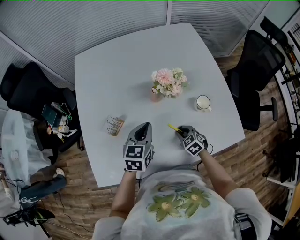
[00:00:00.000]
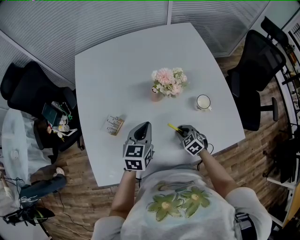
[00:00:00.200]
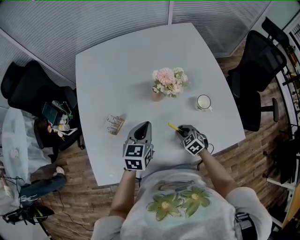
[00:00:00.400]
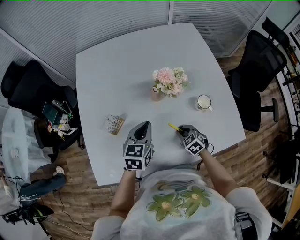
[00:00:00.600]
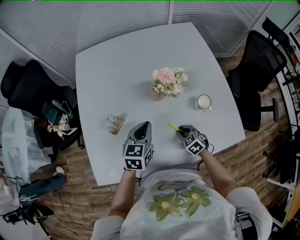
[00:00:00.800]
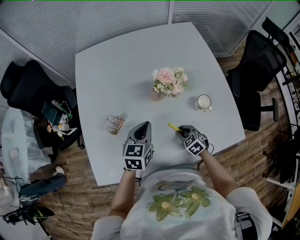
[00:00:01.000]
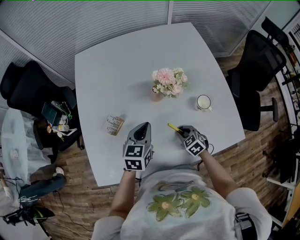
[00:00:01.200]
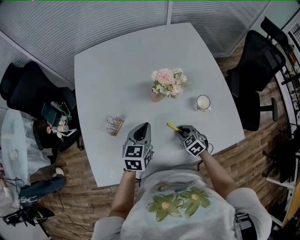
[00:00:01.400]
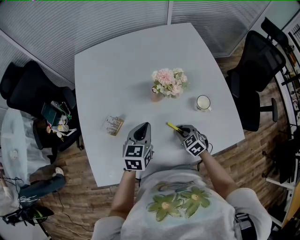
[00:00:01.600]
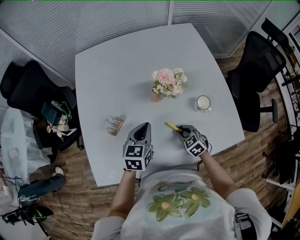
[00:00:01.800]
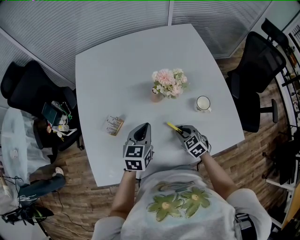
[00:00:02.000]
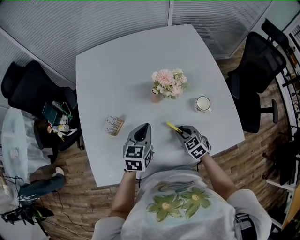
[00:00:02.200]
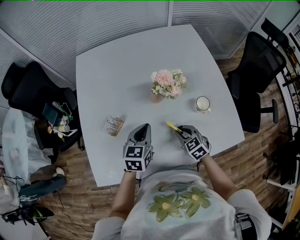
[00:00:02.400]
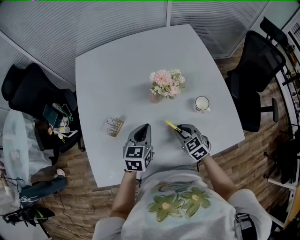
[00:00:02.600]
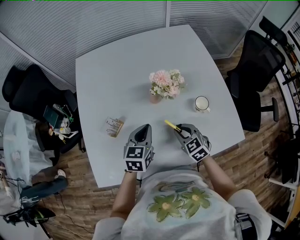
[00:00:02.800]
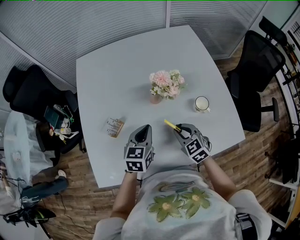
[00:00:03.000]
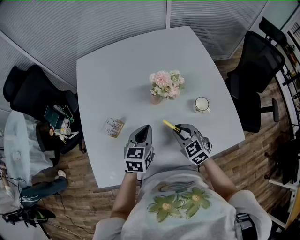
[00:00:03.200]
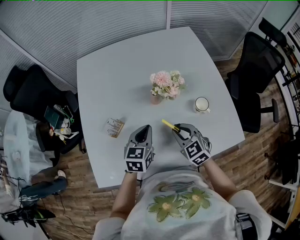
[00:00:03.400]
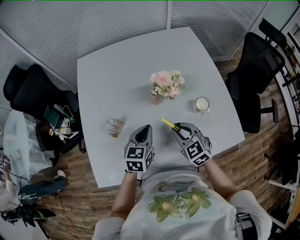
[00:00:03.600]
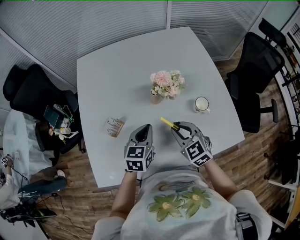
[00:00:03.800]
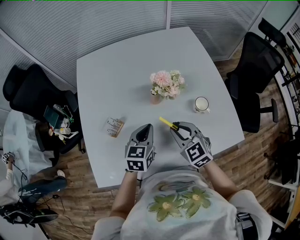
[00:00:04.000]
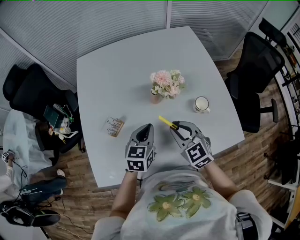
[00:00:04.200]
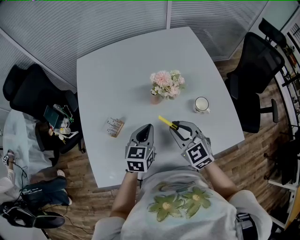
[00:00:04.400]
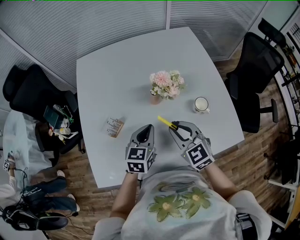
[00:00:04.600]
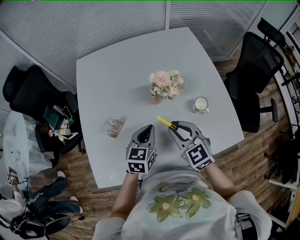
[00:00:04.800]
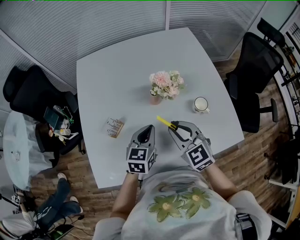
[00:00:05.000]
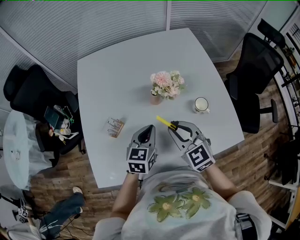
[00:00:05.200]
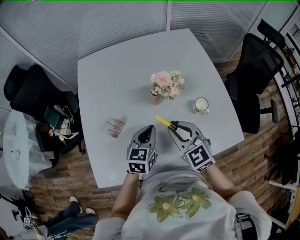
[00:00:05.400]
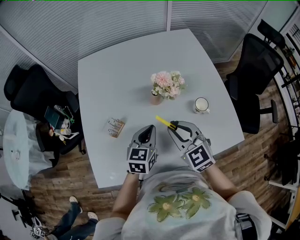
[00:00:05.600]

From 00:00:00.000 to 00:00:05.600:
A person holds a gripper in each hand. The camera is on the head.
From 00:00:00.000 to 00:00:01.400: Both grippers stay put.
From 00:00:01.400 to 00:00:02.800: The right gripper shifts roughly 10 cm upward.
From 00:00:02.800 to 00:00:04.200: The right gripper goes approximately 10 cm upward.
From 00:00:04.200 to 00:00:05.600: The right gripper shifts by some 5 cm.

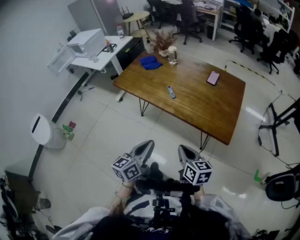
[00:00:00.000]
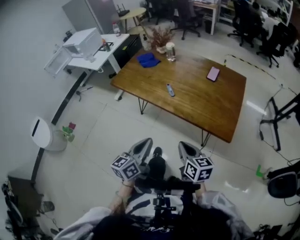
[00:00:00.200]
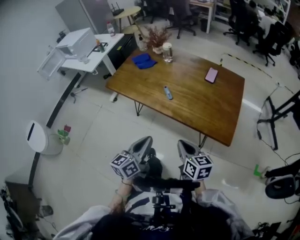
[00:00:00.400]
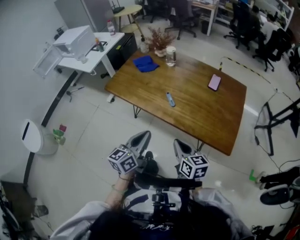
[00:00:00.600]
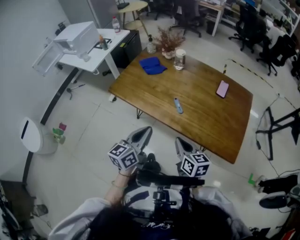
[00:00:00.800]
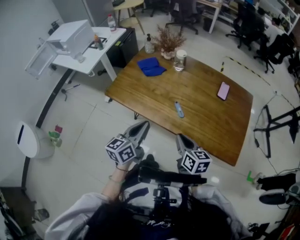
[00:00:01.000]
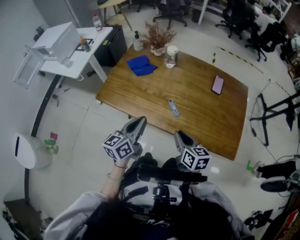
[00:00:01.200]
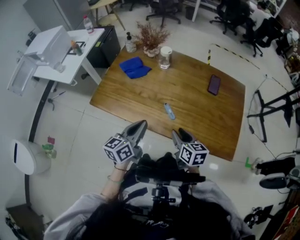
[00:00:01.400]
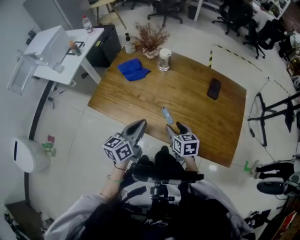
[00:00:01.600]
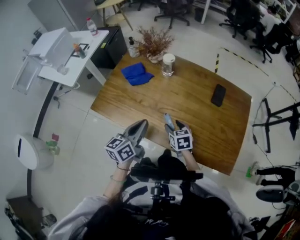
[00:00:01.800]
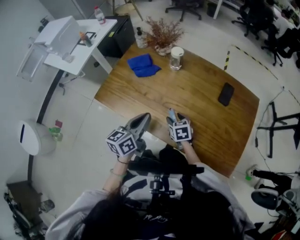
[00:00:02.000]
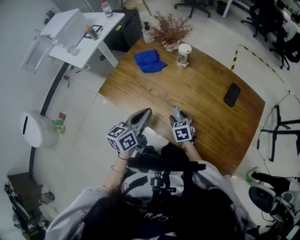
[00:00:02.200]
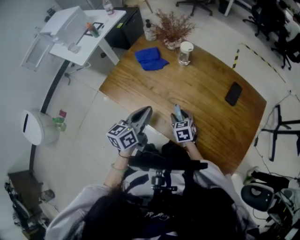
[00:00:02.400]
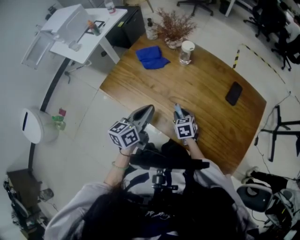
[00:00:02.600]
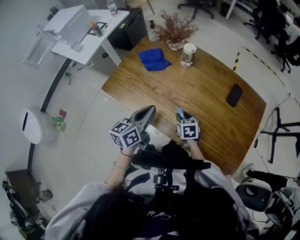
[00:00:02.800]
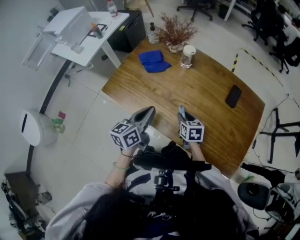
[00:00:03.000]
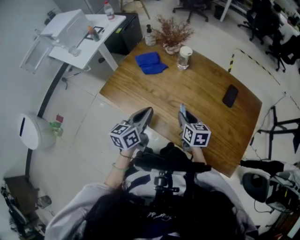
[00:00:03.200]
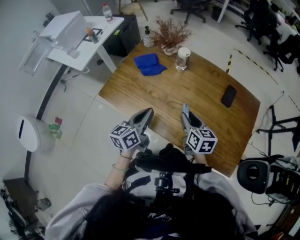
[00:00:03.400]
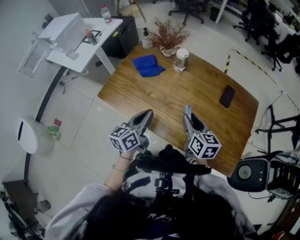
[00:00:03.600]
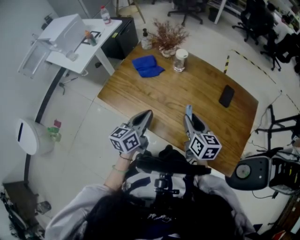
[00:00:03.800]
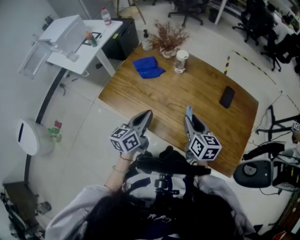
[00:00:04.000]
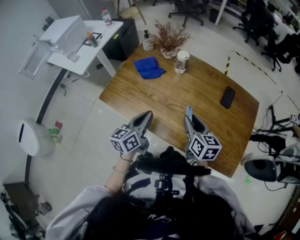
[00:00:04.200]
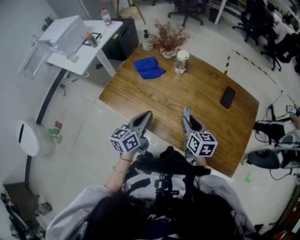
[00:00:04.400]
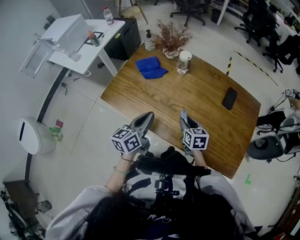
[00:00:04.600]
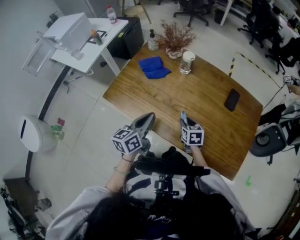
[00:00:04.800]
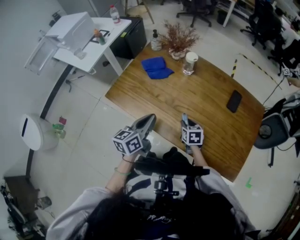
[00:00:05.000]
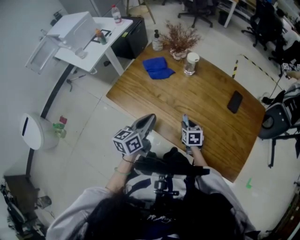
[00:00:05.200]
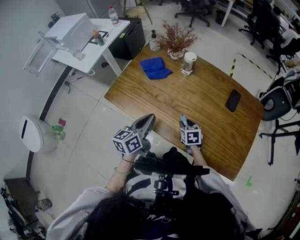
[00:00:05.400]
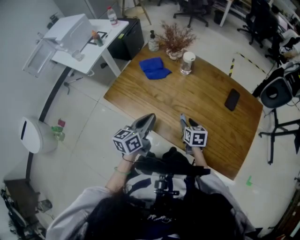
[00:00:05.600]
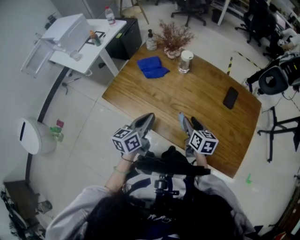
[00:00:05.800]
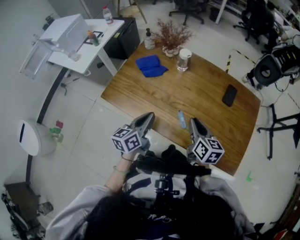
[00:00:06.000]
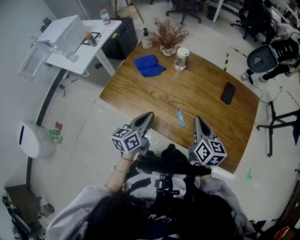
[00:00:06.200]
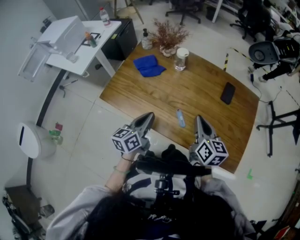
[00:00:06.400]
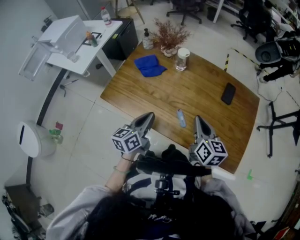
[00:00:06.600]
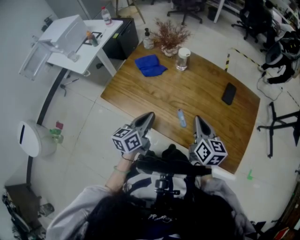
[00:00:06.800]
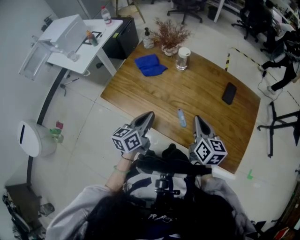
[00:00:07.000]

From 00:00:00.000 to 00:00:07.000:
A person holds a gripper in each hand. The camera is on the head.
From 00:00:00.000 to 00:00:01.400: The grippers both shift forward by roughly 30 cm. The right gripper opens.
From 00:00:01.400 to 00:00:02.800: The right gripper goes roughly 15 cm forward and downward, and changes its angle by some 30 degrees, while the left gripper travels forward by roughly 5 cm.
From 00:00:02.800 to 00:00:04.200: The right gripper goes roughly 20 cm upward, and changes its angle by about 30 degrees.
From 00:00:04.200 to 00:00:05.600: The right gripper shifts approximately 15 cm downward, and changes its angle by approximately 20 degrees.
From 00:00:05.600 to 00:00:07.000: The right gripper is displaced upward by about 15 cm, swivels roughly 30 degrees, and closes its fingers.

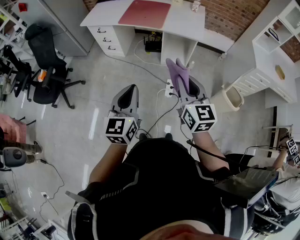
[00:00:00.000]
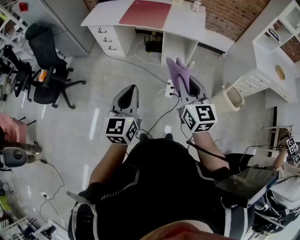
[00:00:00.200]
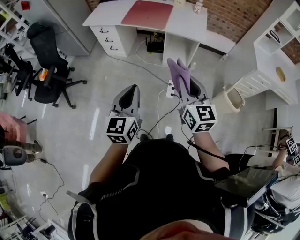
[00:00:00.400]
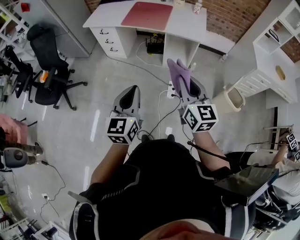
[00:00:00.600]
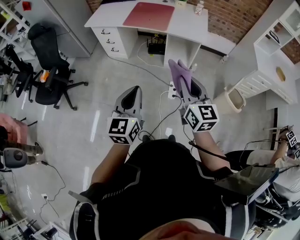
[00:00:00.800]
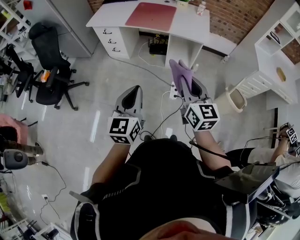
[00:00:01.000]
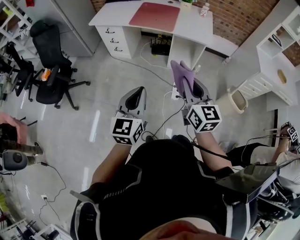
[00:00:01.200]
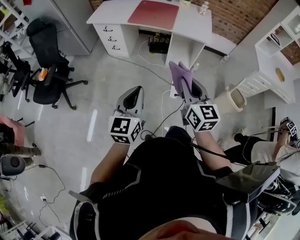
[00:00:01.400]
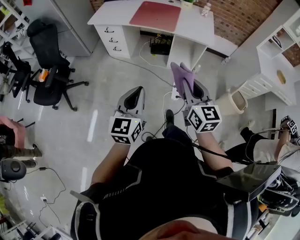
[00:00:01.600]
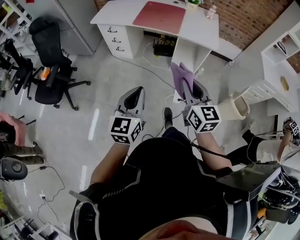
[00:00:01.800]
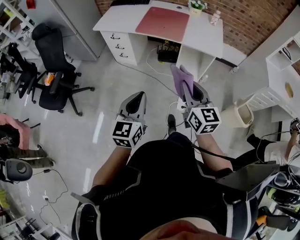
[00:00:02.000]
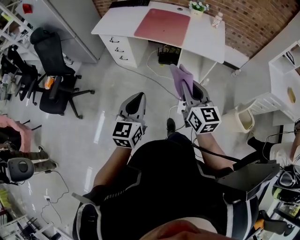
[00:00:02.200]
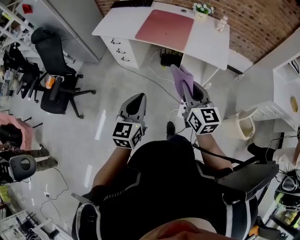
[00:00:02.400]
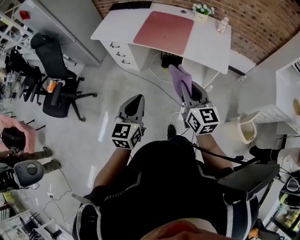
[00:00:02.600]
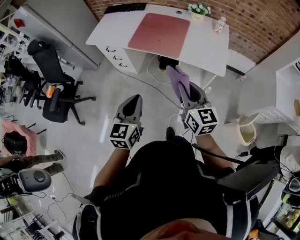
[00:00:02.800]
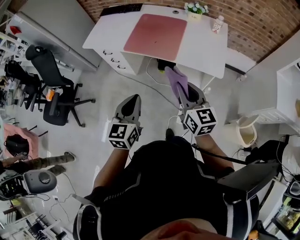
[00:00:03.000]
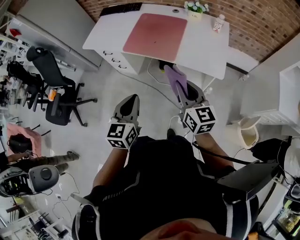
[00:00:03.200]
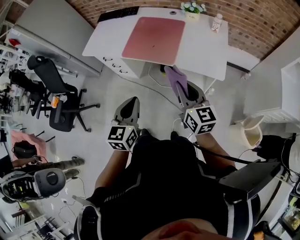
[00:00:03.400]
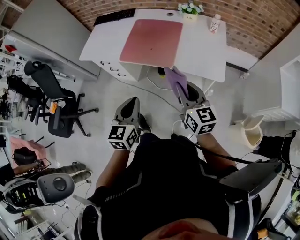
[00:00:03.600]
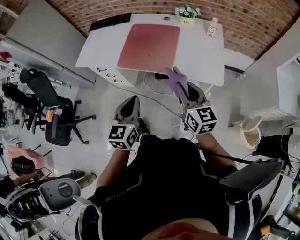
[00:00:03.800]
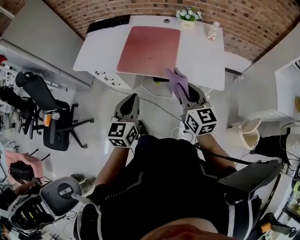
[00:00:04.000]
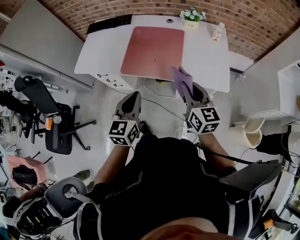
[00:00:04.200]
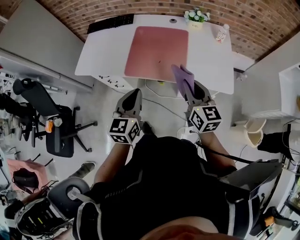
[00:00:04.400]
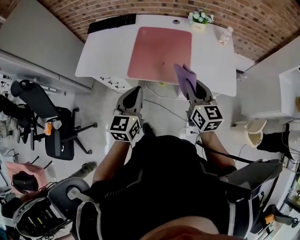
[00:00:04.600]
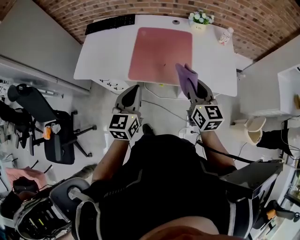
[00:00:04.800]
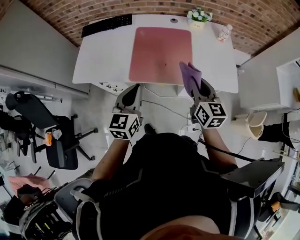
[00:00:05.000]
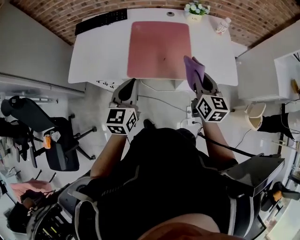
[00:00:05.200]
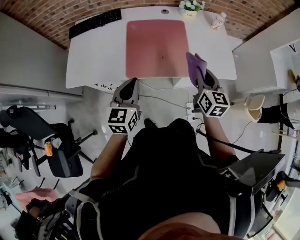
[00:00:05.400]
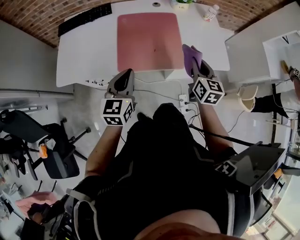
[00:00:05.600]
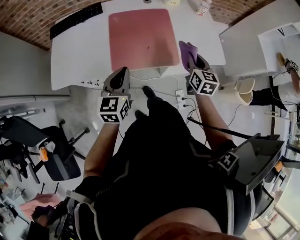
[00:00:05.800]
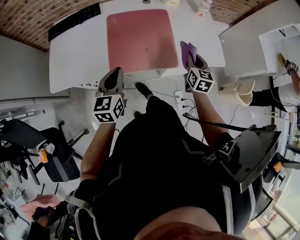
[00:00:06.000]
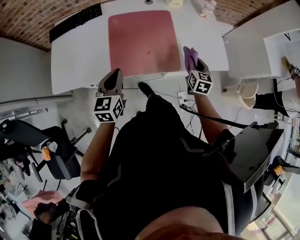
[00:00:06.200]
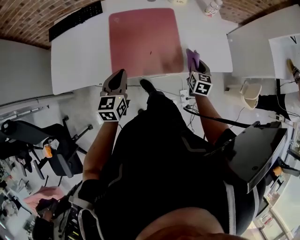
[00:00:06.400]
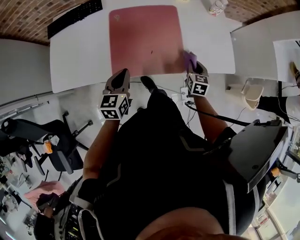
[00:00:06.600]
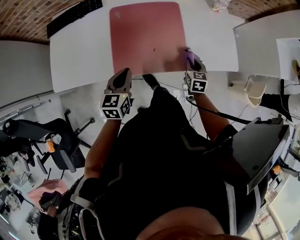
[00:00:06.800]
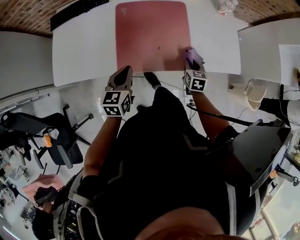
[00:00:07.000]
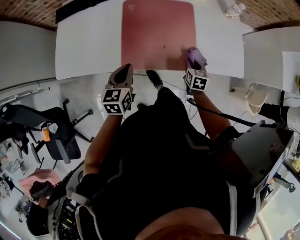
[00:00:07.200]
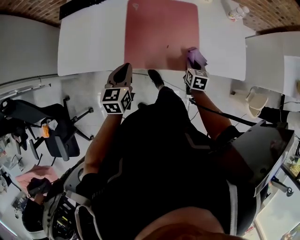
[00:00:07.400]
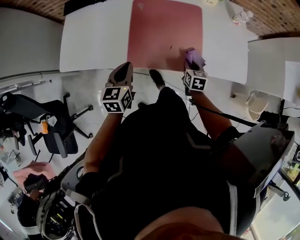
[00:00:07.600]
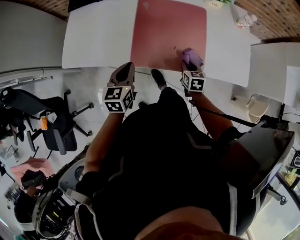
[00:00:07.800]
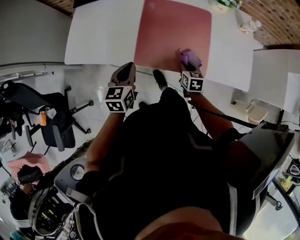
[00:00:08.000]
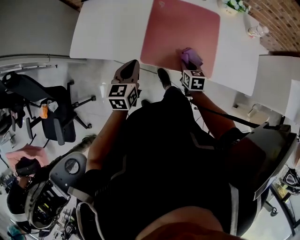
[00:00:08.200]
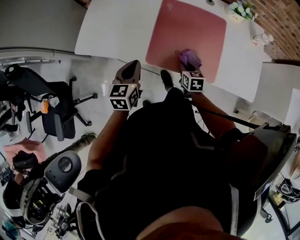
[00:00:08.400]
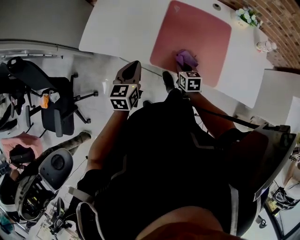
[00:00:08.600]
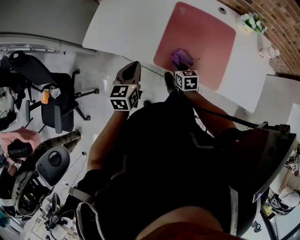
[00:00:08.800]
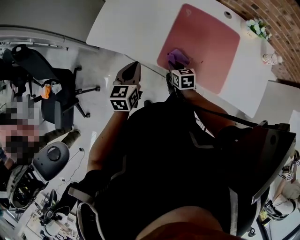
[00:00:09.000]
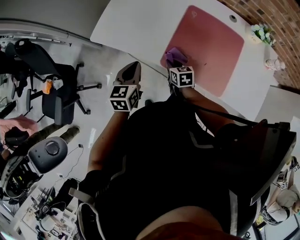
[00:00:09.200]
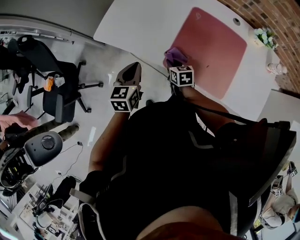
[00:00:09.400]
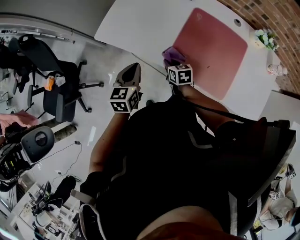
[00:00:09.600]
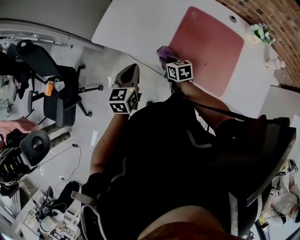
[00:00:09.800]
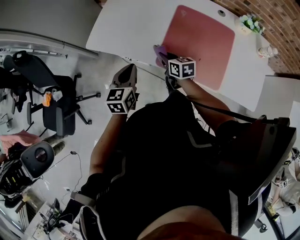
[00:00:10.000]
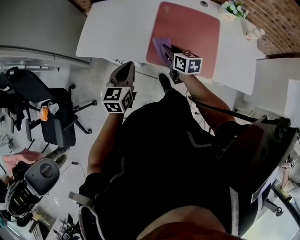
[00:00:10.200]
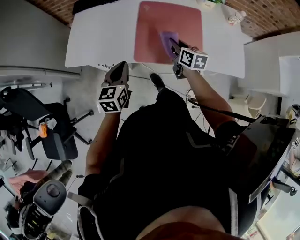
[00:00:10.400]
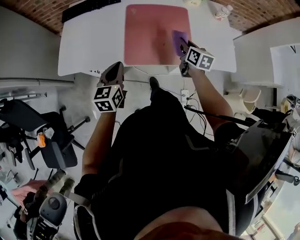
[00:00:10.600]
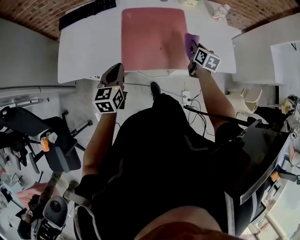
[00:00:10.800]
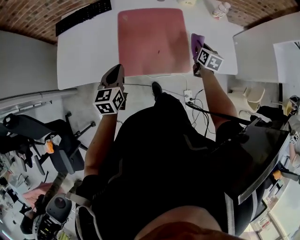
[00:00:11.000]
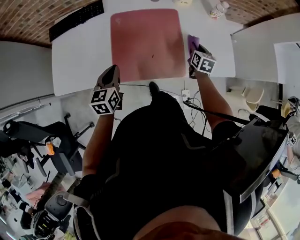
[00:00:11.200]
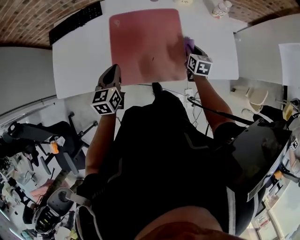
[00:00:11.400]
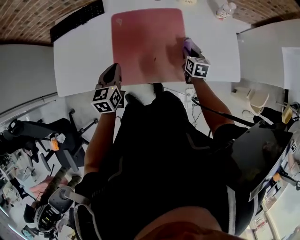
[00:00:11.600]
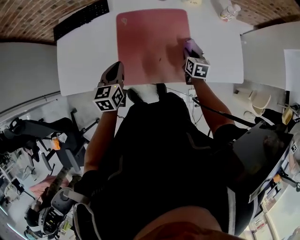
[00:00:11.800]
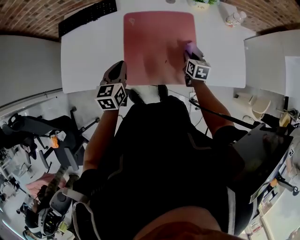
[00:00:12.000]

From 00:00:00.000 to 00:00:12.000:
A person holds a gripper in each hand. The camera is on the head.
From 00:00:00.000 to 00:00:01.600: Both grippers travel together to the left, roughly 10 cm.
From 00:00:01.600 to 00:00:03.000: Both grippers move forward, approximately 30 cm.
From 00:00:03.000 to 00:00:04.400: The grippers both shift forward by roughly 20 cm.
From 00:00:04.400 to 00:00:06.000: The right gripper heads downward and forward, covering about 20 cm, and rotates approximately 40 degrees. Meanwhile the left gripper is displaced forward, to the left and downward by approximately 20 cm.
From 00:00:06.000 to 00:00:07.600: The left gripper moves downward, some 5 cm, while the right gripper shifts about 20 cm downward and to the left, and swivels roughly 20 degrees.
From 00:00:07.600 to 00:00:09.000: The left gripper shifts by about 10 cm, while the right gripper shifts by approximately 25 cm, and rotates roughly 30 degrees.
From 00:00:09.000 to 00:00:10.400: The right gripper heads upward, covering roughly 10 cm, and rotates roughly 30 degrees.
From 00:00:10.400 to 00:00:12.000: The left gripper shifts approximately 15 cm forward, while the right gripper heads to the right, downward and forward, covering about 20 cm, and turns by about 20 degrees.
